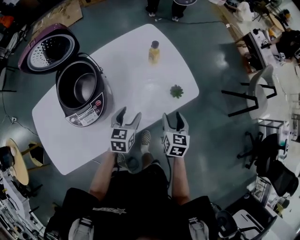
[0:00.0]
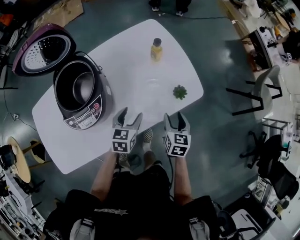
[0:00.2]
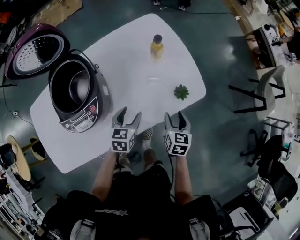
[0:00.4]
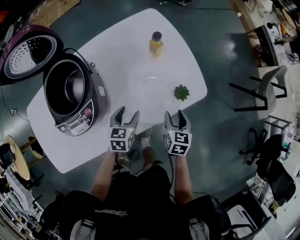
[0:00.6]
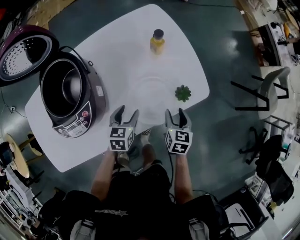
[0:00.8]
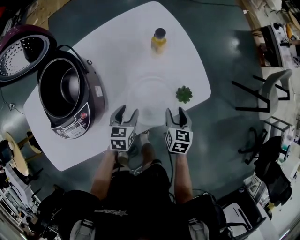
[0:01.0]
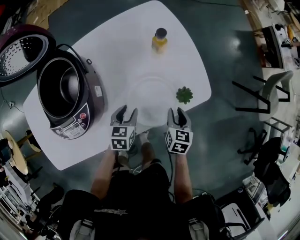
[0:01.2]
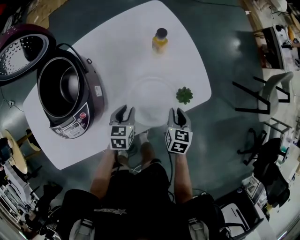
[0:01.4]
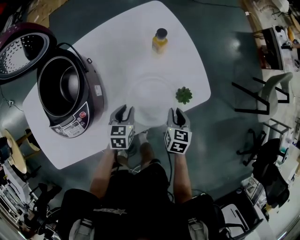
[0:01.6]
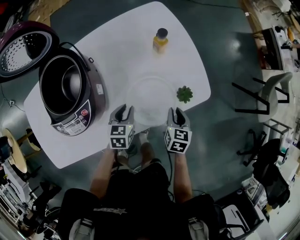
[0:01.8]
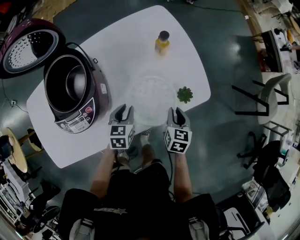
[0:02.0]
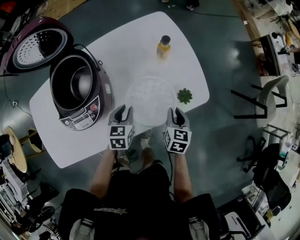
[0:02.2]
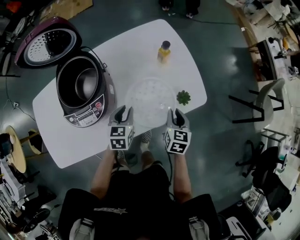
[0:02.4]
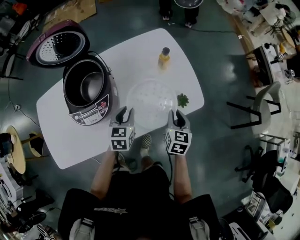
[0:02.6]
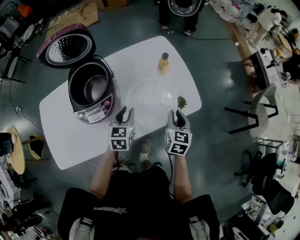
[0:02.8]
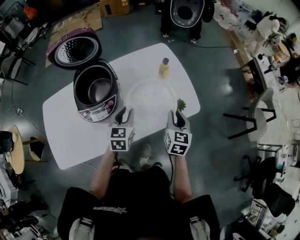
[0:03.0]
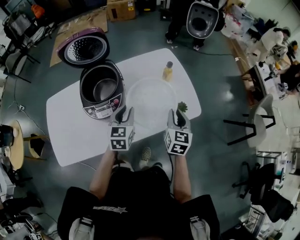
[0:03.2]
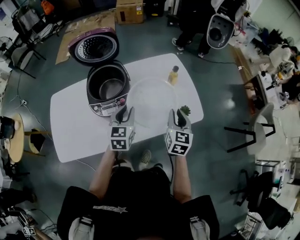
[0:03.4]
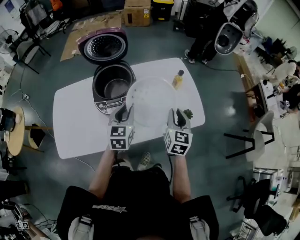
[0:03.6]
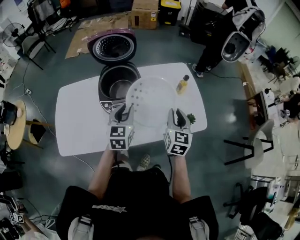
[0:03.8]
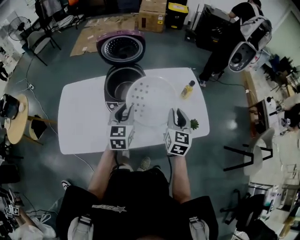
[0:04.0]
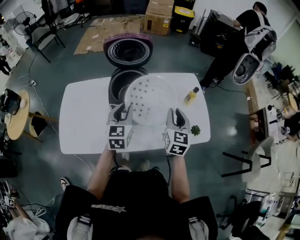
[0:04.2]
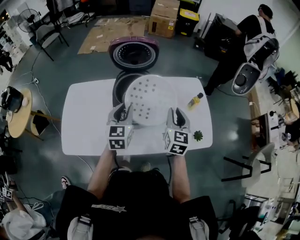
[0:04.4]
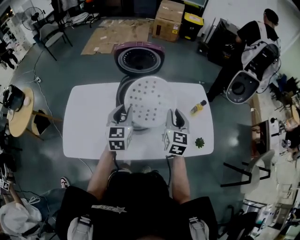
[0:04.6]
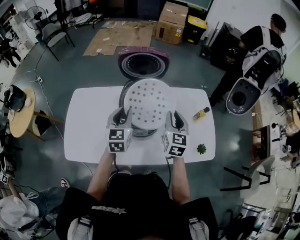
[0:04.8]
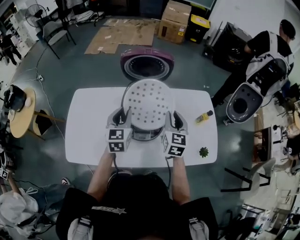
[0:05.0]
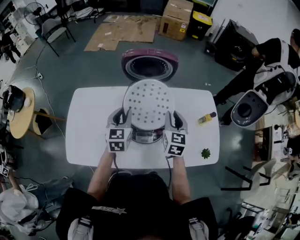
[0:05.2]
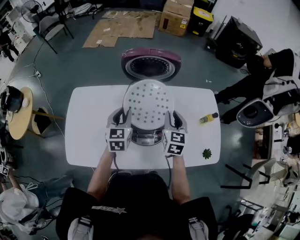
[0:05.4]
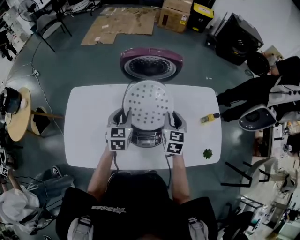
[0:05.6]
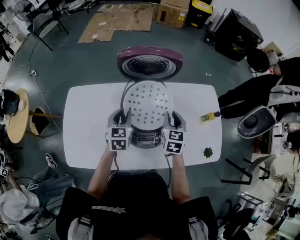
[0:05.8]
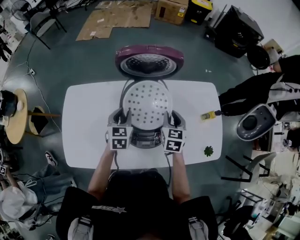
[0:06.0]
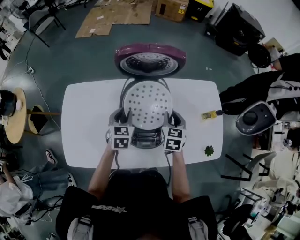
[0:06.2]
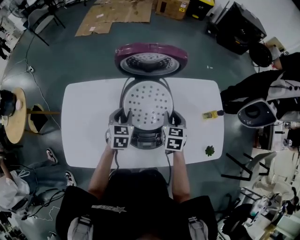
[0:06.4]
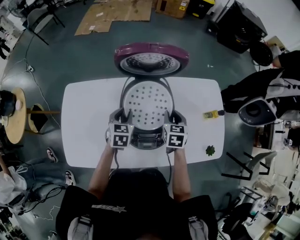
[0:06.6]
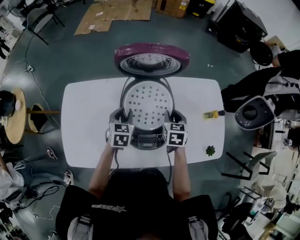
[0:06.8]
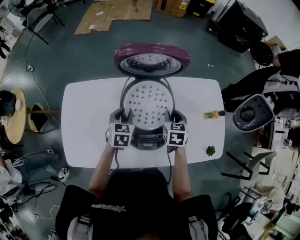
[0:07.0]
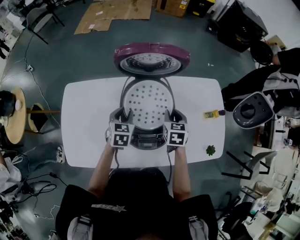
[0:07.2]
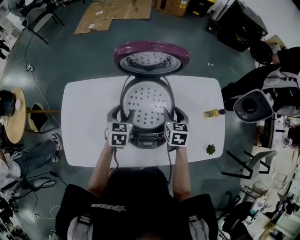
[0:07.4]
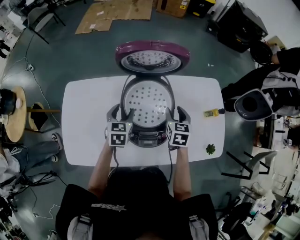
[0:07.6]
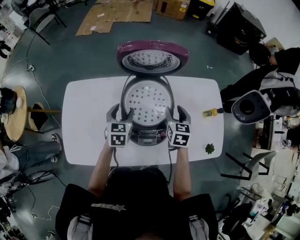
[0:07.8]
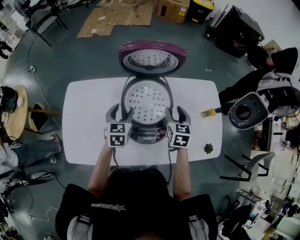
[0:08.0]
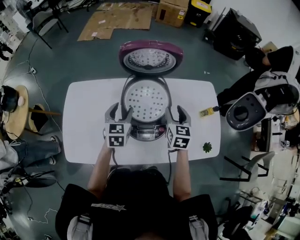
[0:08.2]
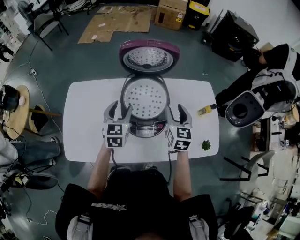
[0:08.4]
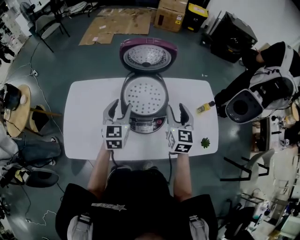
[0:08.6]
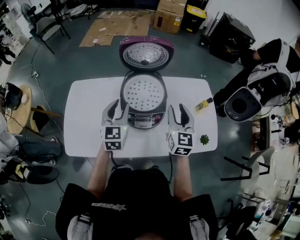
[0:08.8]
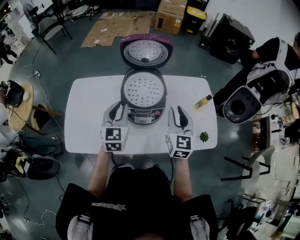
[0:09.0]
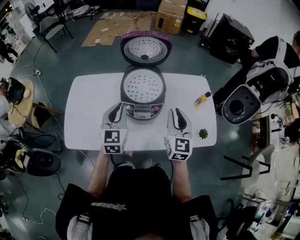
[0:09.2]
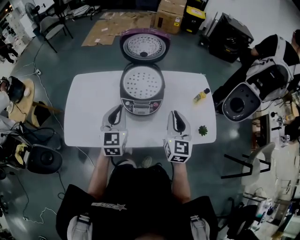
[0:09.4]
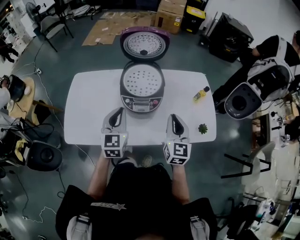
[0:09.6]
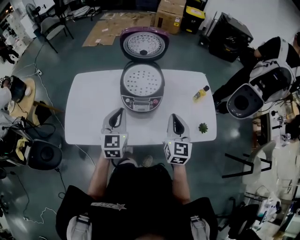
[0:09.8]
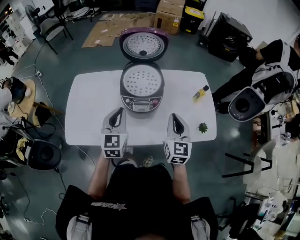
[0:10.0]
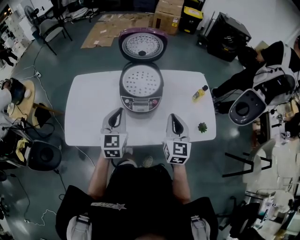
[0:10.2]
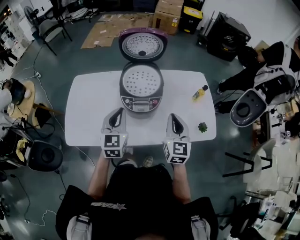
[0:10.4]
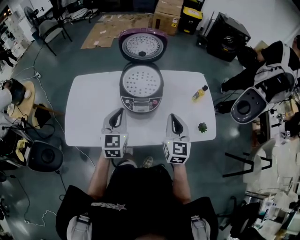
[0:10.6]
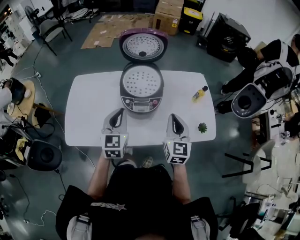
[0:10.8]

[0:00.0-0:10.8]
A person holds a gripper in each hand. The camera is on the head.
0:00.0 to 0:01.6: Both grippers travel together downward, approximately 10 cm. The right gripper closes its fingers. The left gripper closes up.
0:01.6 to 0:03.0: Both grippers move upward, roughly 20 cm. The right gripper swivels about 20 degrees. The left gripper turns by approximately 20 degrees.
0:03.0 to 0:04.6: The right gripper heads to the left, forward and upward, covering approximately 25 cm, and rotates approximately 20 degrees; the left gripper heads to the left and upward, covering some 25 cm, and swivels approximately 30 degrees.
0:04.6 to 0:06.2: The two grippers go approximately 15 cm downward, forward and to the left. The left gripper changes its angle by about 20 degrees. Meanwhile the right gripper changes its angle by roughly 20 degrees.
0:06.2 to 0:07.8: The left gripper opens its fingers.
0:07.8 to 0:09.2: Both grippers travel together backward and upward, roughly 20 cm. The left gripper changes its angle by roughly 20 degrees, and closes up, while the right gripper rotates approximately 30 degrees, and closes up.
0:09.2 to 0:10.8: Both grippers travel together backward, about 5 cm.

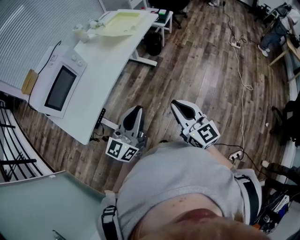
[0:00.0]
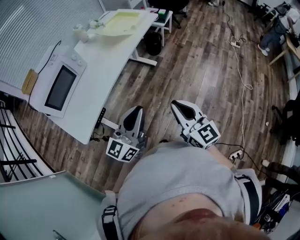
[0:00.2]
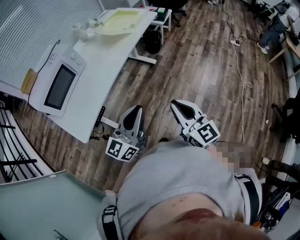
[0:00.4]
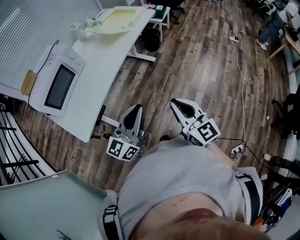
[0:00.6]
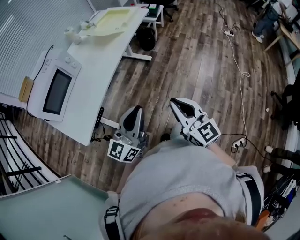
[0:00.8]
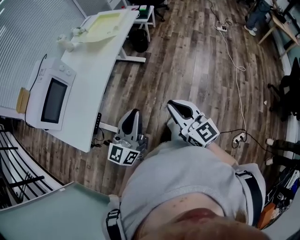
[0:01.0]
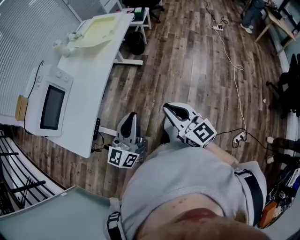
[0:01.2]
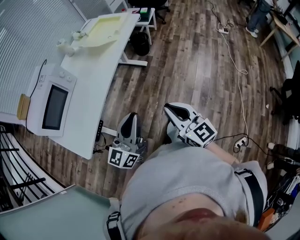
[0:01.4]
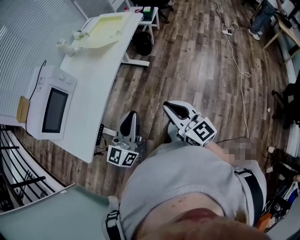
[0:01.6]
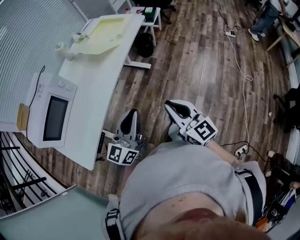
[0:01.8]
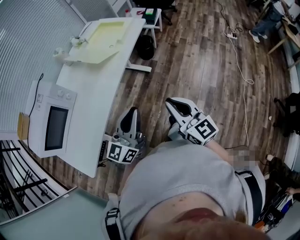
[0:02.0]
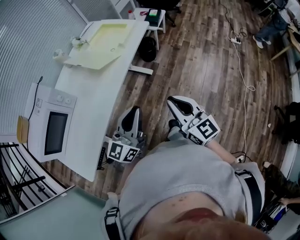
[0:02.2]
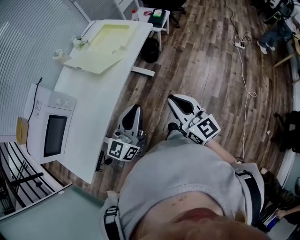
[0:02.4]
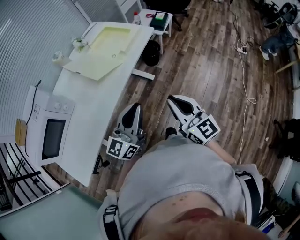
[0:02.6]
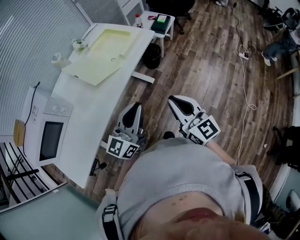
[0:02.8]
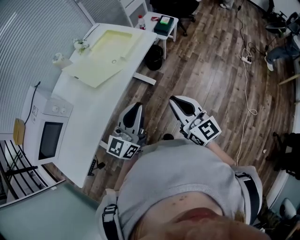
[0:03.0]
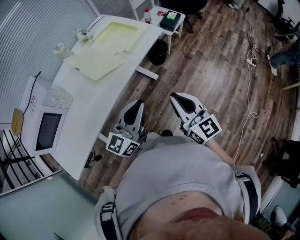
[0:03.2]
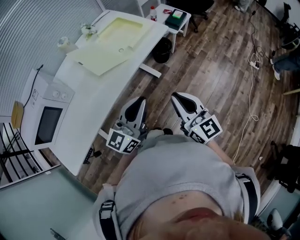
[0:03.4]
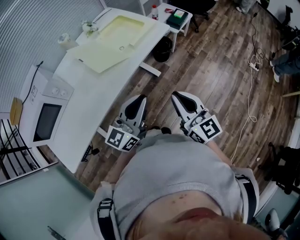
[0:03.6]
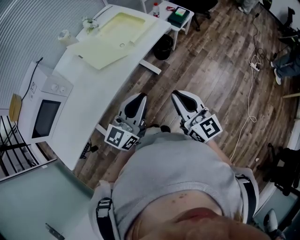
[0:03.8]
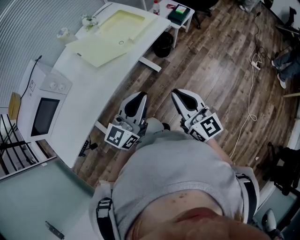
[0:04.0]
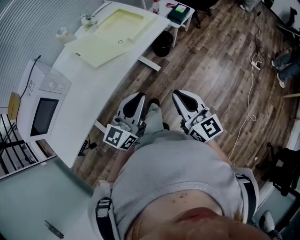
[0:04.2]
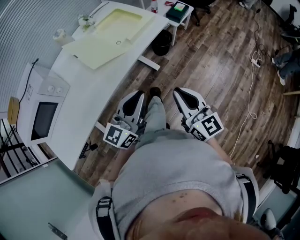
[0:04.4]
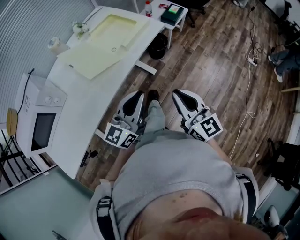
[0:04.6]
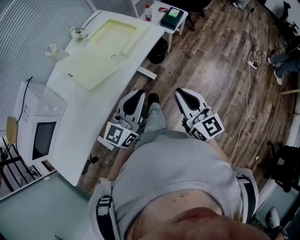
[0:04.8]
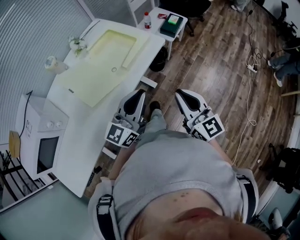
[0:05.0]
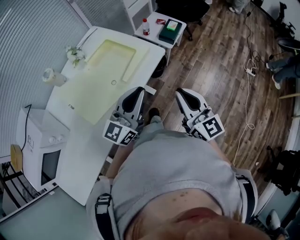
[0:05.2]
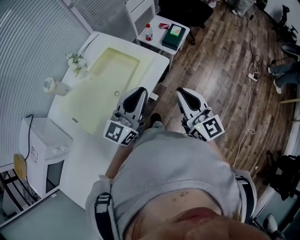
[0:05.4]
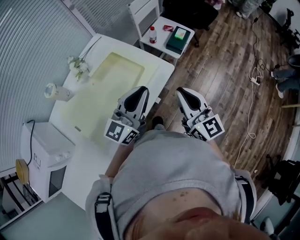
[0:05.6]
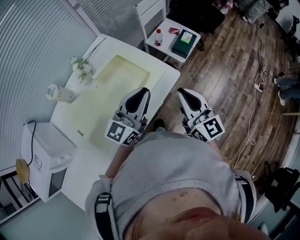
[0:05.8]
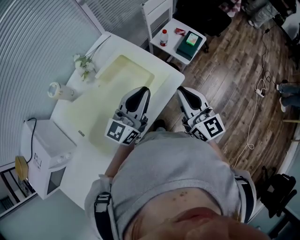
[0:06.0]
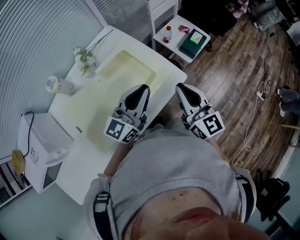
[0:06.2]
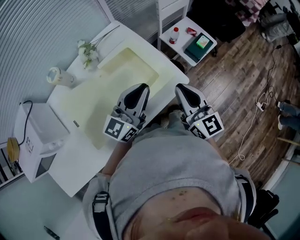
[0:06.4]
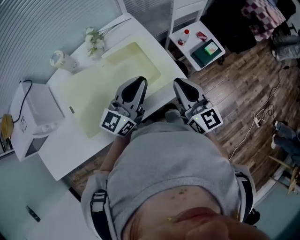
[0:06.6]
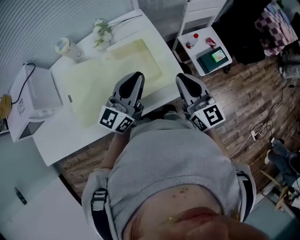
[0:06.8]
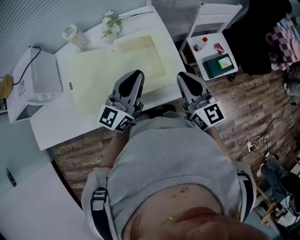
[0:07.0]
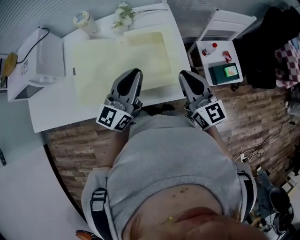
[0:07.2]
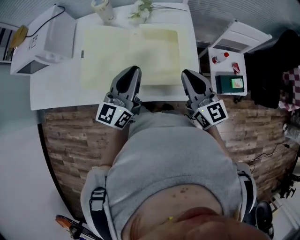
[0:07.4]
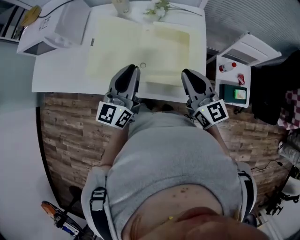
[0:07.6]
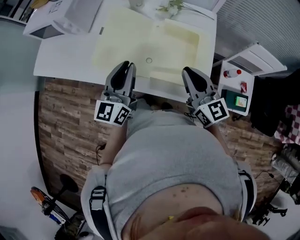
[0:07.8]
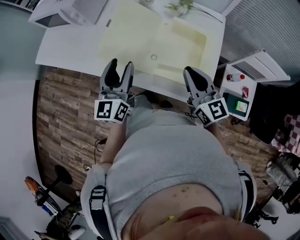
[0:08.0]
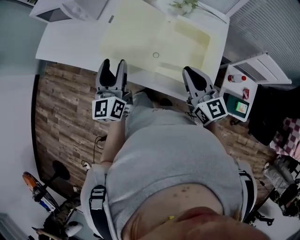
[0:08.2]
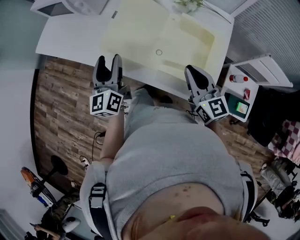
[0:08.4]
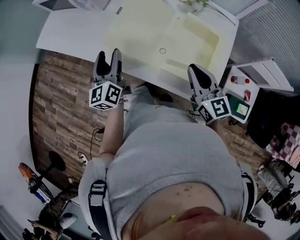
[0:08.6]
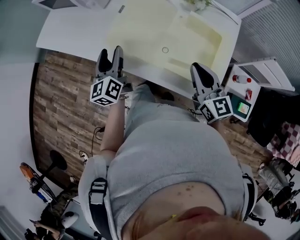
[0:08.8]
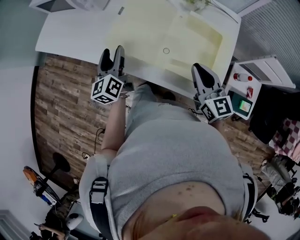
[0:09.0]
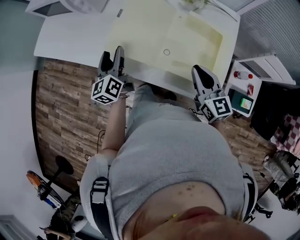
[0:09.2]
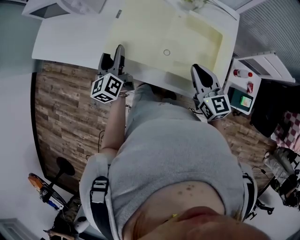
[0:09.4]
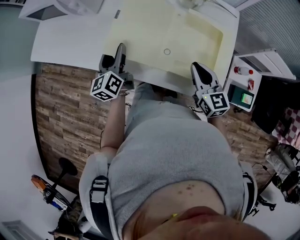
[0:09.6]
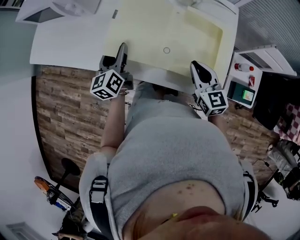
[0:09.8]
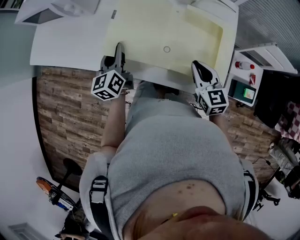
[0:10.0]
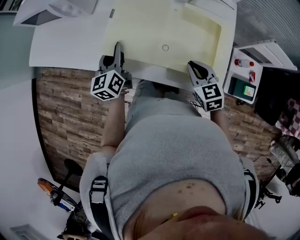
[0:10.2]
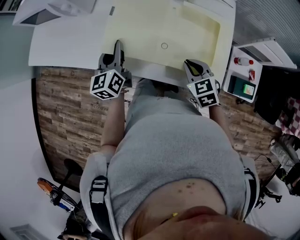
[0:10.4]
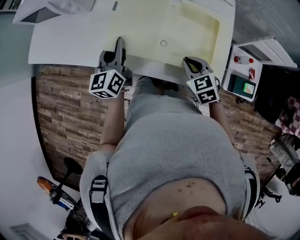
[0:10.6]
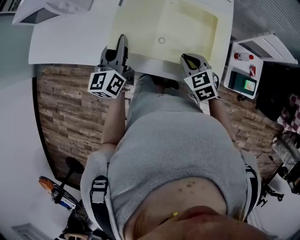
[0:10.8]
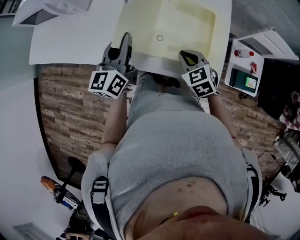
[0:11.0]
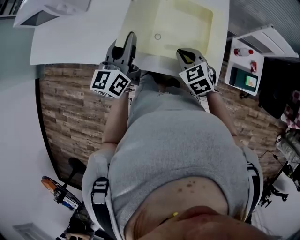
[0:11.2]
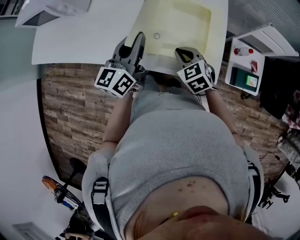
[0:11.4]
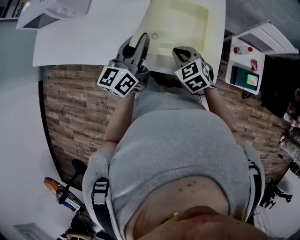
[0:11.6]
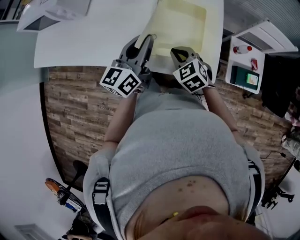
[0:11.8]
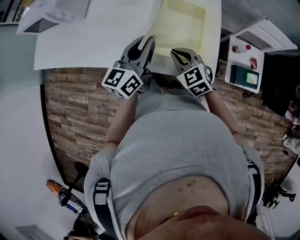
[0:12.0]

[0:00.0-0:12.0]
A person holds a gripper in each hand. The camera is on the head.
0:00.0 to 0:01.6: The grippers both shift forward by roughly 5 cm.
0:01.6 to 0:03.0: The two grippers go about 30 cm forward.
0:03.0 to 0:04.4: There are only small adjustments of the grippers.
0:04.4 to 0:06.0: Both grippers travel together forward, roughly 40 cm.
0:06.0 to 0:07.6: The left gripper changes place by about 10 cm, and rotates roughly 70 degrees. The right gripper ends up about 10 cm from where it was, and turns by about 60 degrees.
0:07.6 to 0:09.0: The right gripper moves some 10 cm. Meanwhile the left gripper shifts by roughly 25 cm, turns by approximately 40 degrees, and opens its fingers.
0:09.0 to 0:10.4: The left gripper closes; the right gripper shifts roughly 10 cm downward, and points its fingers about 30 degrees further downward.
0:10.4 to 0:12.0: The left gripper goes some 20 cm to the right, and rotates roughly 30 degrees.

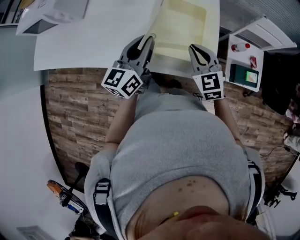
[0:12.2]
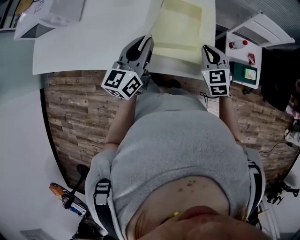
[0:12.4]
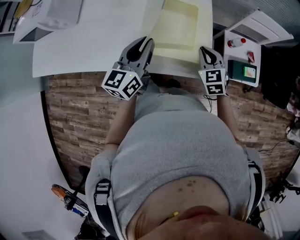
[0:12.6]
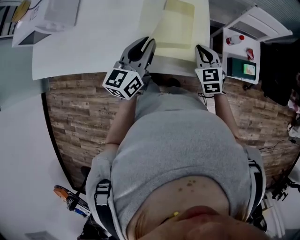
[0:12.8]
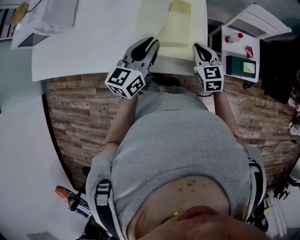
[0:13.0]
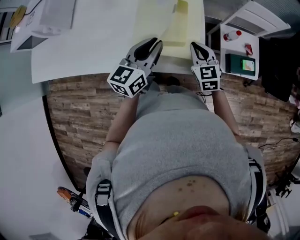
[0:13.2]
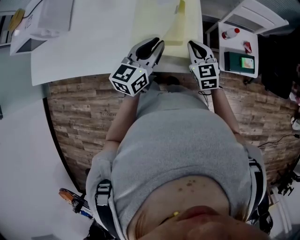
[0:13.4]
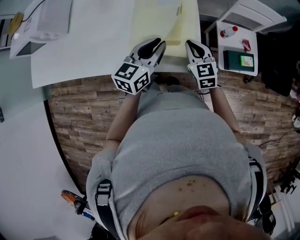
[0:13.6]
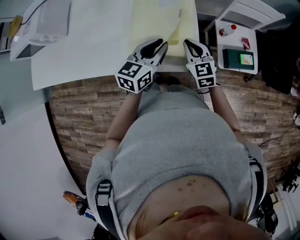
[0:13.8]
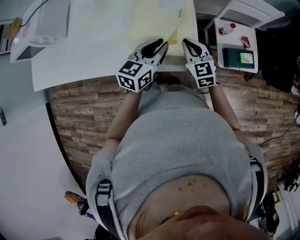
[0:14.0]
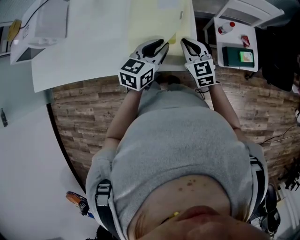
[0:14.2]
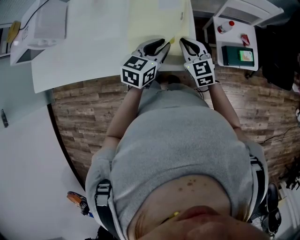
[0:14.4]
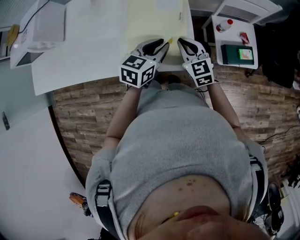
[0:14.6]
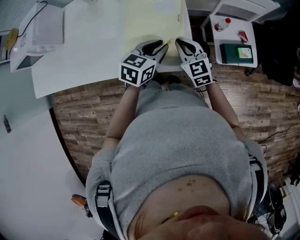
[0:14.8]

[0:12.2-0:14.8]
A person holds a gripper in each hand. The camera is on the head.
0:12.2 to 0:13.4: The left gripper travels to the right by about 10 cm, while the right gripper goes some 10 cm to the right and downward.
0:13.4 to 0:14.8: The left gripper heads to the right and downward, covering approximately 10 cm, and rotates about 20 degrees.
